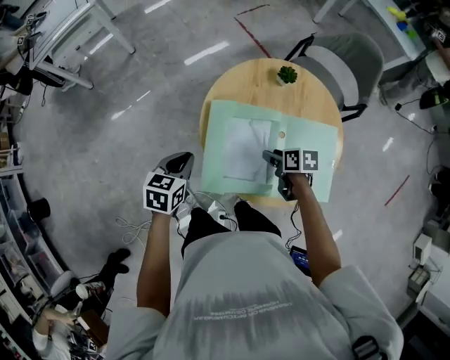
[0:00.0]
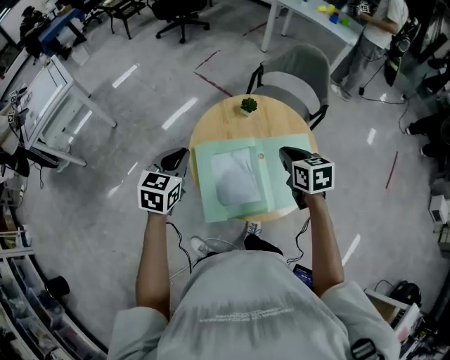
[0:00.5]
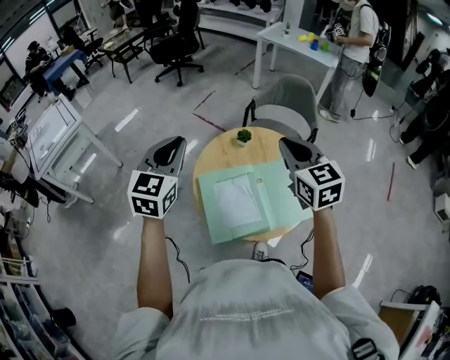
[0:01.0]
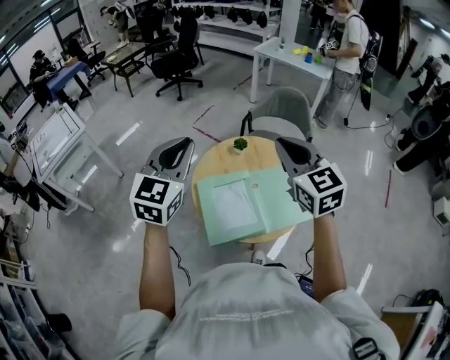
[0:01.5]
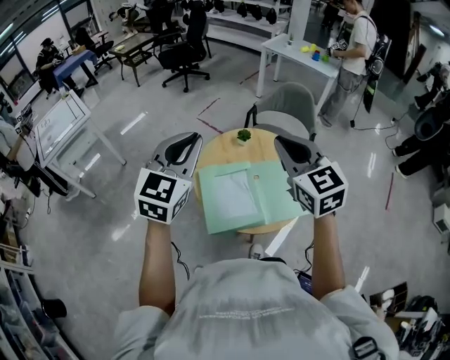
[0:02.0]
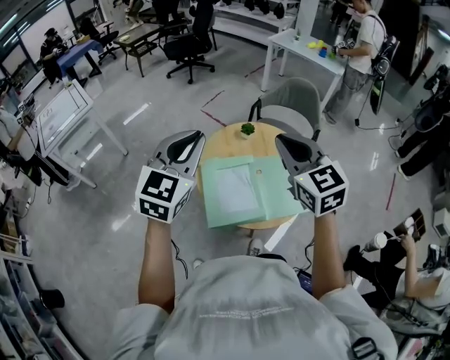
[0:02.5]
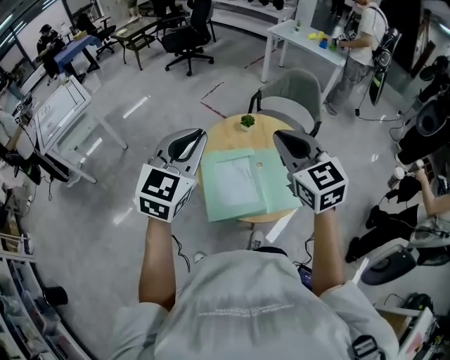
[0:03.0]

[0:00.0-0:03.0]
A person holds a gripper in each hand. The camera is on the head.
0:00.0 to 0:01.5: Both grippers travel together upward, approximately 40 cm. The left gripper points its fingers roughly 40 degrees further upward. Meanwhile the right gripper tilts its fingers some 50 degrees upward, and closes.
0:01.5 to 0:03.0: The left gripper moves about 5 cm.

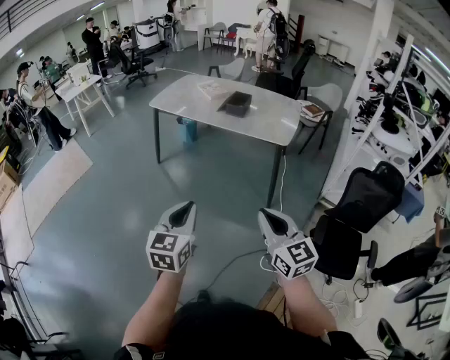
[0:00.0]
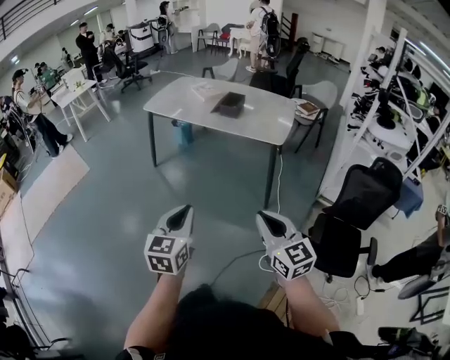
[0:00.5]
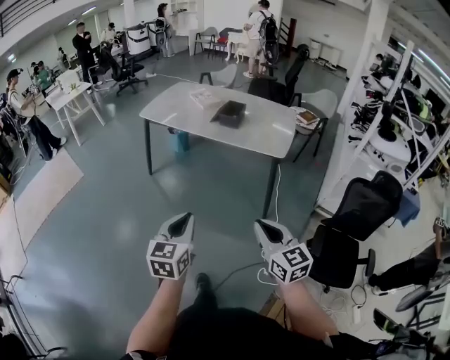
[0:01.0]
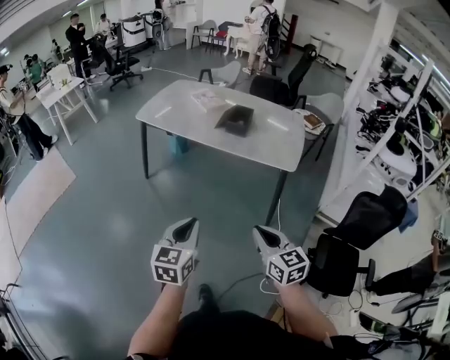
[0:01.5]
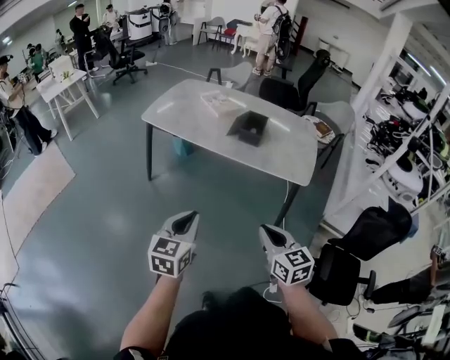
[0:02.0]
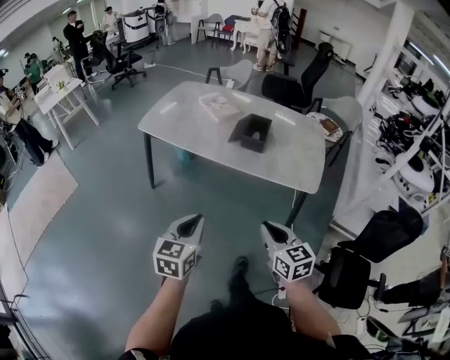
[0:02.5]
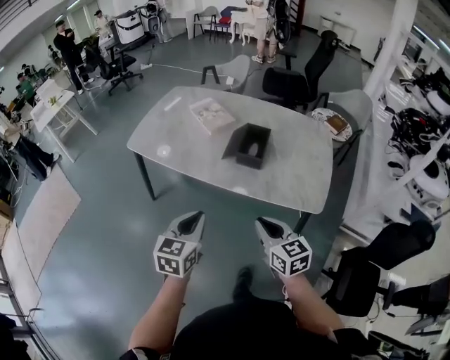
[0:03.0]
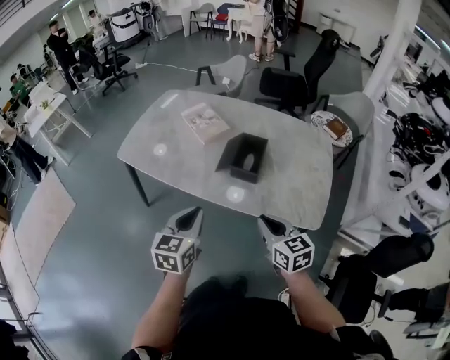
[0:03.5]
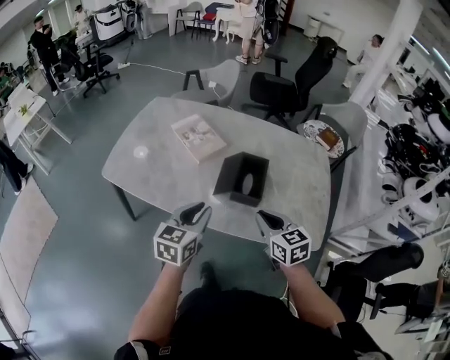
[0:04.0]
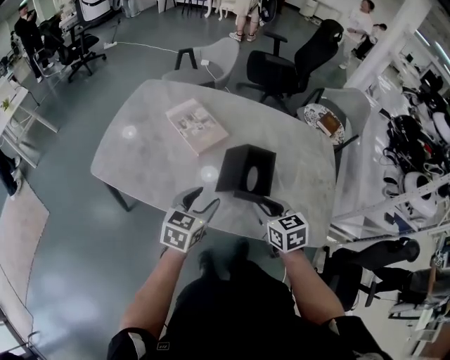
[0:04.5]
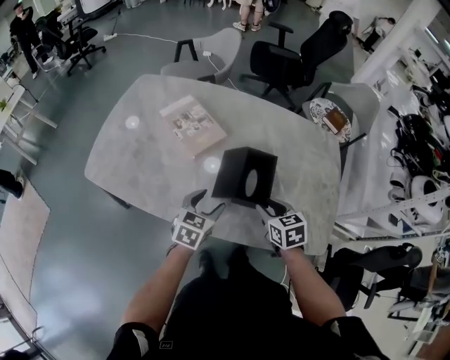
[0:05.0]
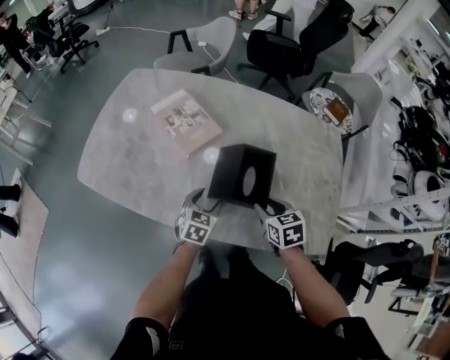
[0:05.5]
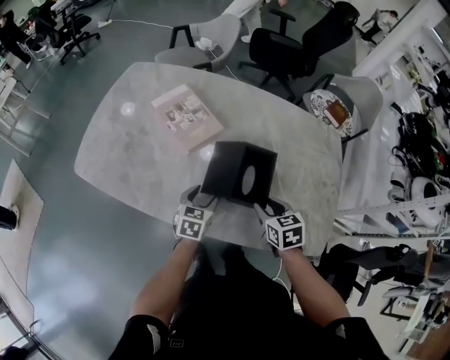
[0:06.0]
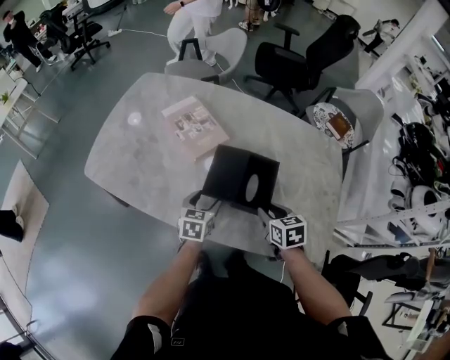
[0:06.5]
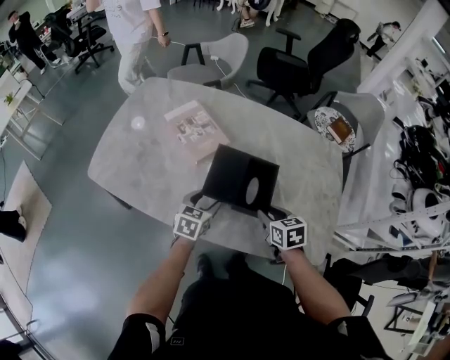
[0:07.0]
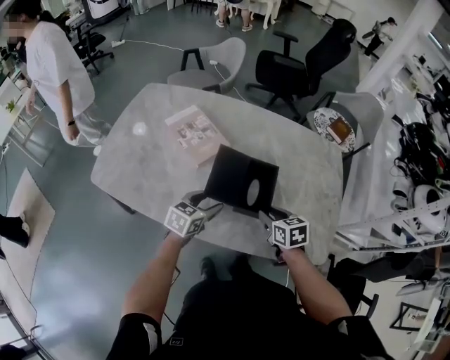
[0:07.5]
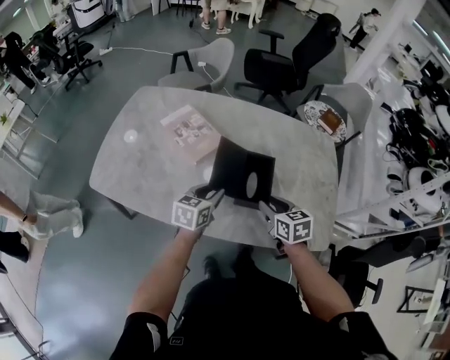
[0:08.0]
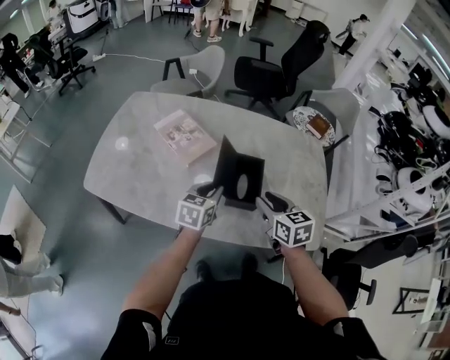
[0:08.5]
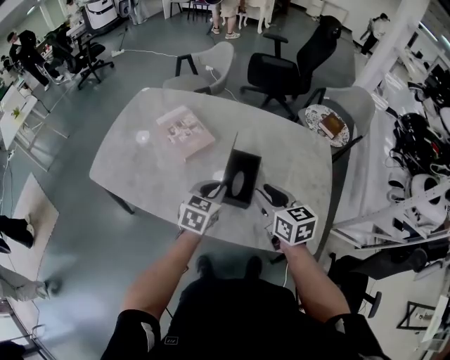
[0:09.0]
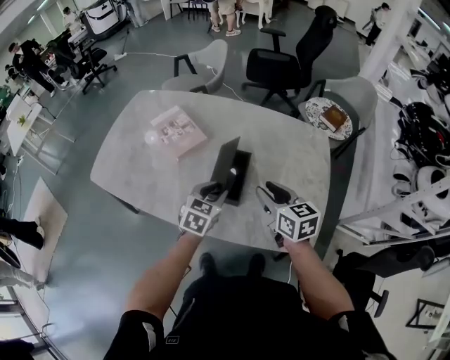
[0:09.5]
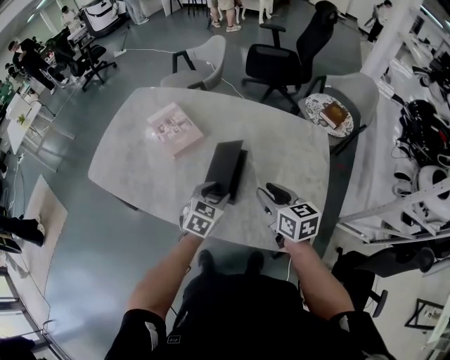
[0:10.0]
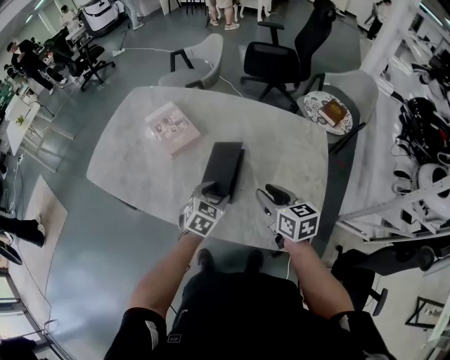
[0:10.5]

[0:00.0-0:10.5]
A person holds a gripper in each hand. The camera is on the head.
0:00.0 to 0:02.0: Both grippers travel together forward, about 35 cm.
0:02.0 to 0:04.0: The pair of grippers is taken forward, about 50 cm.
0:04.0 to 0:06.5: The left gripper moves downward and forward, some 25 cm, and opens up, while the right gripper heads forward and downward, covering some 20 cm, changes its angle by approximately 20 degrees, and opens up.
0:06.5 to 0:08.5: The two grippers go some 10 cm upward. The left gripper closes up.
0:08.5 to 0:10.5: The two grippers go some 15 cm to the right. The left gripper swivels roughly 30 degrees, and opens its fingers.

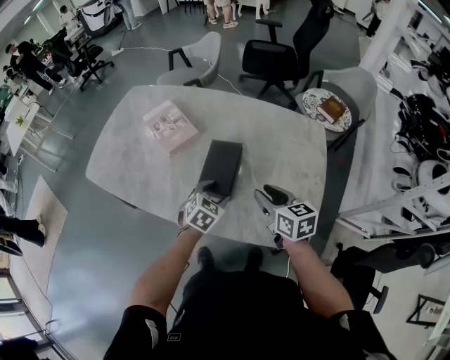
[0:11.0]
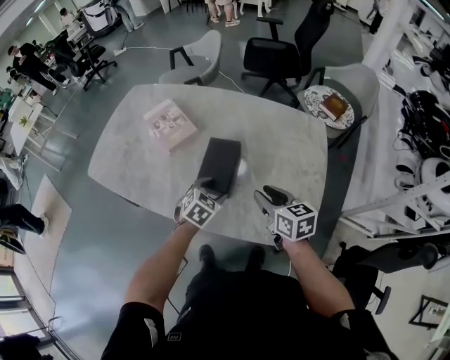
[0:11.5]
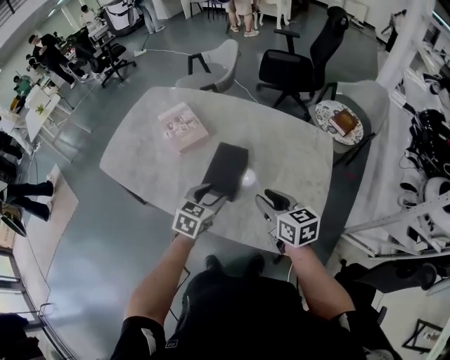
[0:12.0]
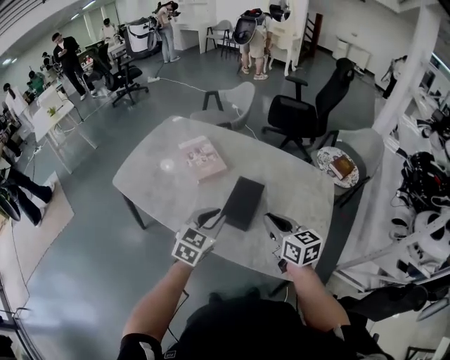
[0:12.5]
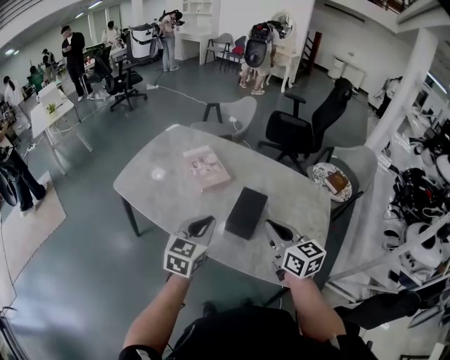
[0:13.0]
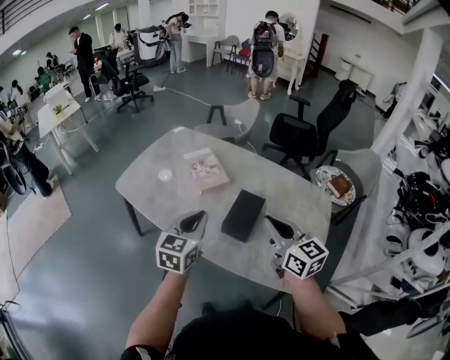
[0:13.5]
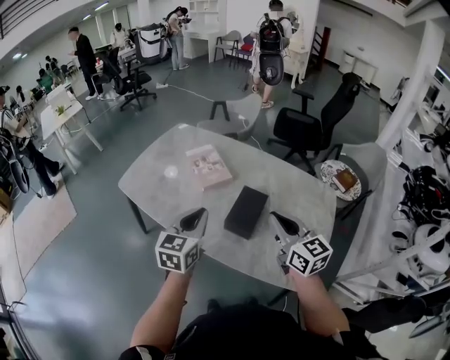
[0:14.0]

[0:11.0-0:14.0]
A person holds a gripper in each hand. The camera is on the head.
0:11.0 to 0:12.5: The left gripper moves upward and to the left, some 20 cm, turns by about 30 degrees, and closes; the right gripper goes roughly 10 cm upward and to the left, and closes up.
0:12.5 to 0:14.0: The right gripper travels upward by roughly 10 cm; the left gripper is displaced upward and to the left by roughly 10 cm, and turns by approximately 20 degrees.

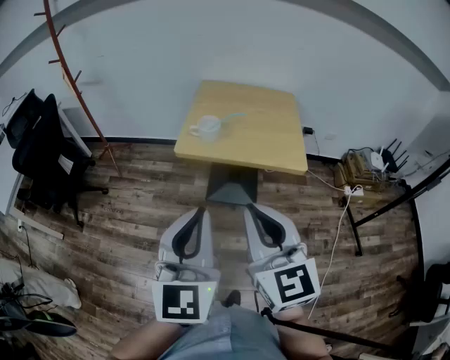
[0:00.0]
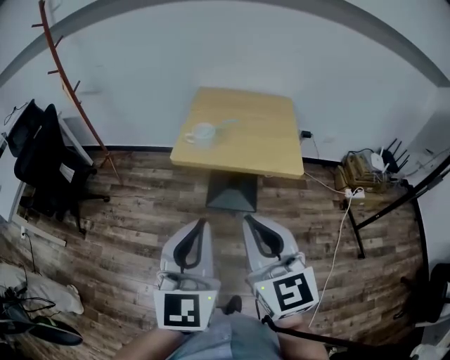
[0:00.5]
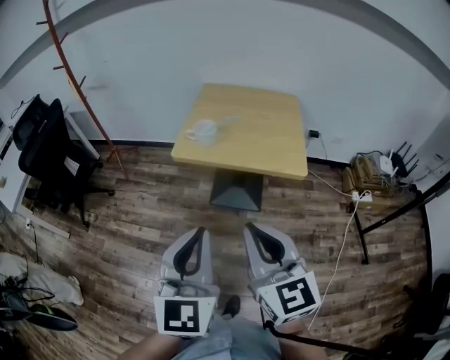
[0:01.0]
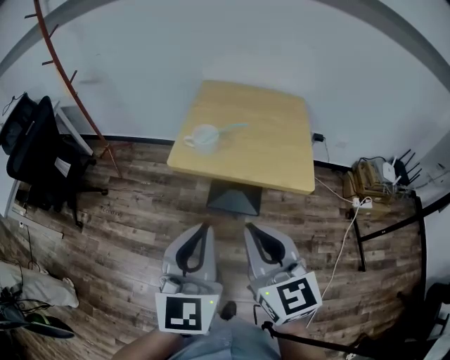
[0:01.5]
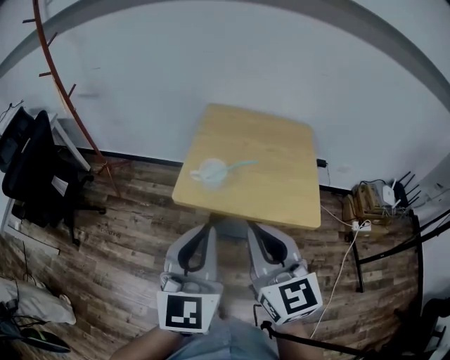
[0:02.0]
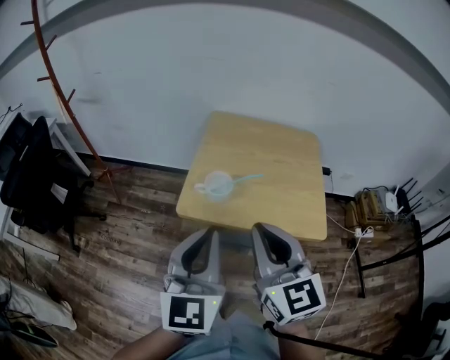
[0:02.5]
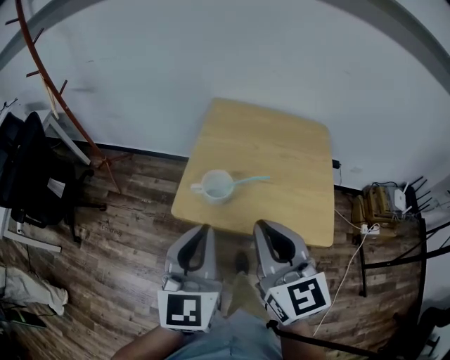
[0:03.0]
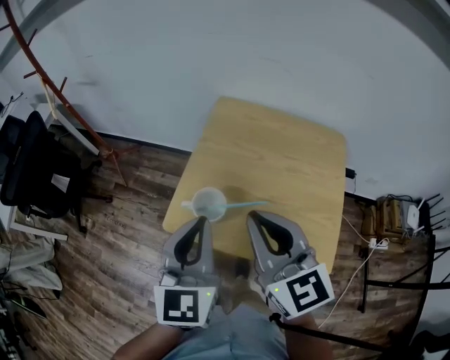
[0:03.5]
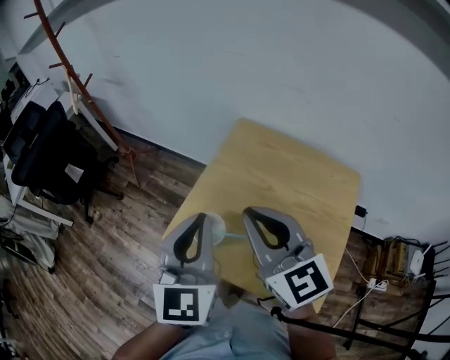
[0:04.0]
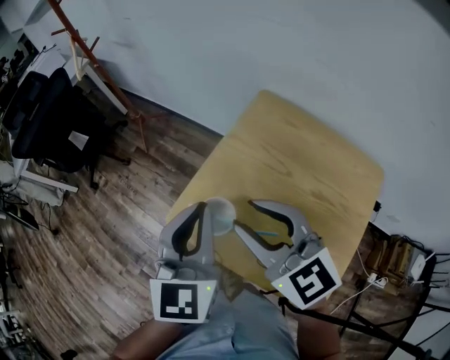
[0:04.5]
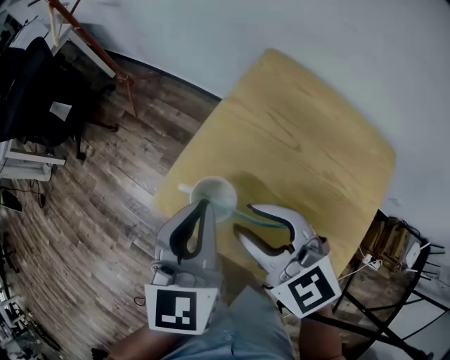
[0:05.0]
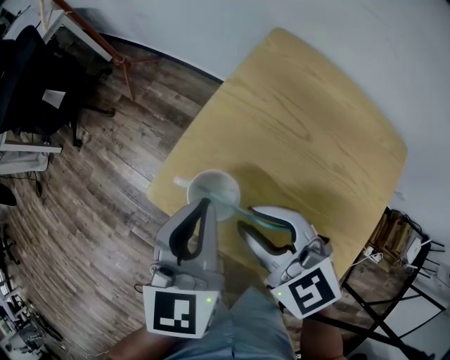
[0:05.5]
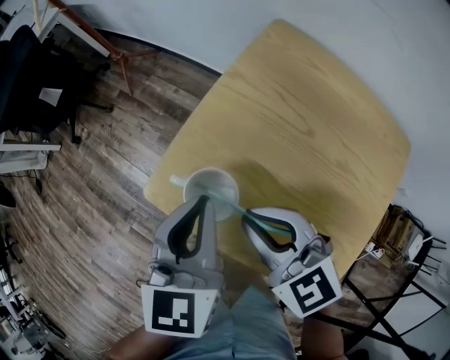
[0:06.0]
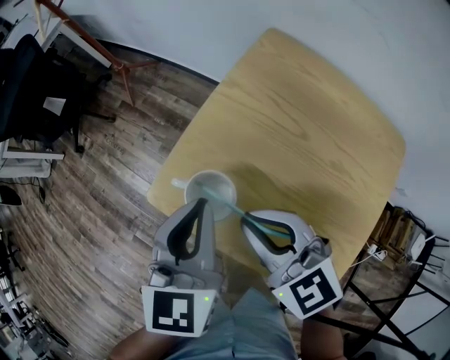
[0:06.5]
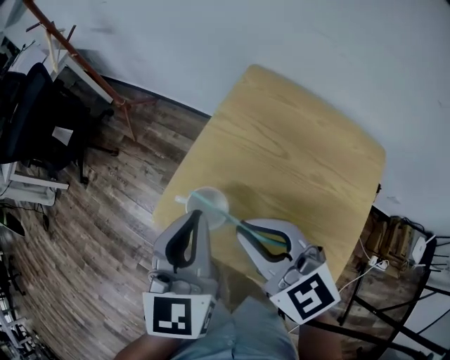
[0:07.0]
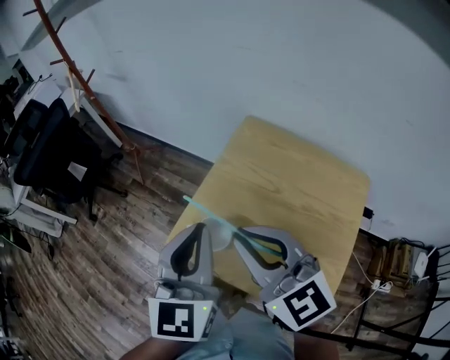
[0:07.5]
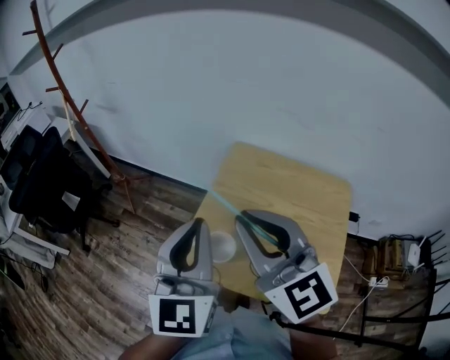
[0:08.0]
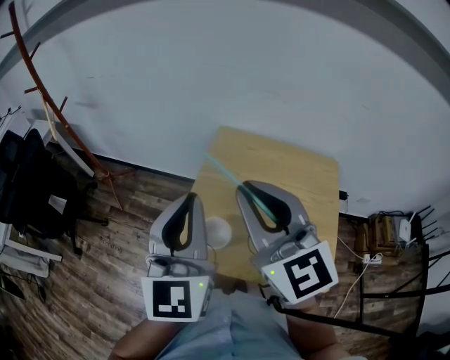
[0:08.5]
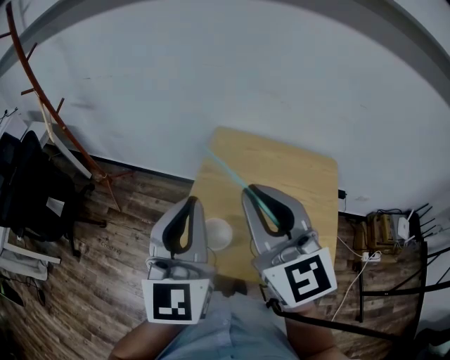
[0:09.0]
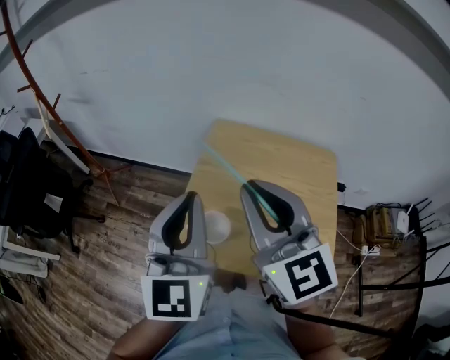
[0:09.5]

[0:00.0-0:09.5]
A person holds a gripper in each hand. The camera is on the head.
0:00.0 to 0:02.0: The two grippers go about 20 cm forward.
0:02.0 to 0:04.0: The left gripper shifts by about 30 cm, and turns by about 20 degrees, while the right gripper ends up some 30 cm from where it was, and changes its angle by roughly 30 degrees.
0:04.0 to 0:05.5: The two grippers go some 15 cm downward. The right gripper rotates roughly 30 degrees, and opens up, while the left gripper rotates about 20 degrees.
0:05.5 to 0:07.5: Both grippers move upward, approximately 15 cm. The right gripper rotates about 20 degrees.
0:07.5 to 0:09.5: Both grippers move upward, approximately 5 cm. The right gripper rotates about 30 degrees.
